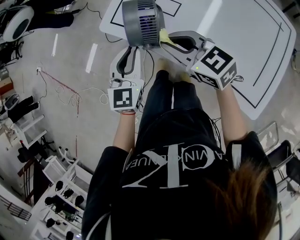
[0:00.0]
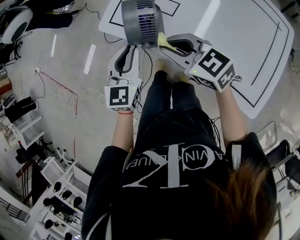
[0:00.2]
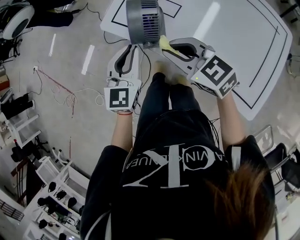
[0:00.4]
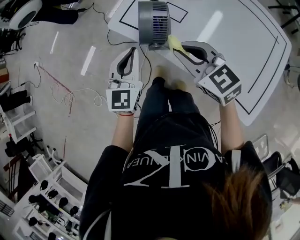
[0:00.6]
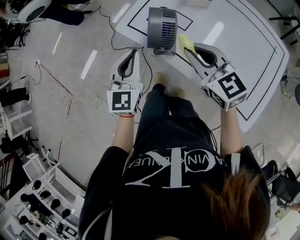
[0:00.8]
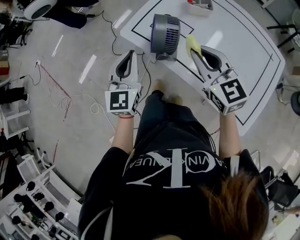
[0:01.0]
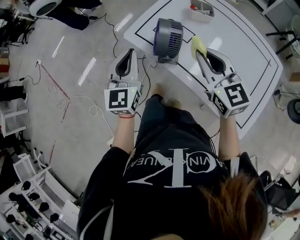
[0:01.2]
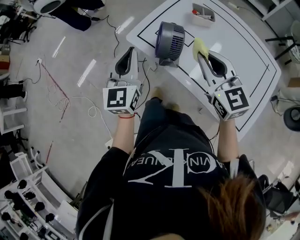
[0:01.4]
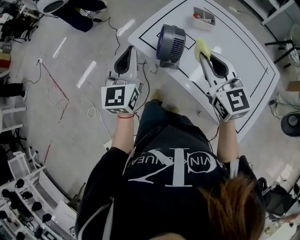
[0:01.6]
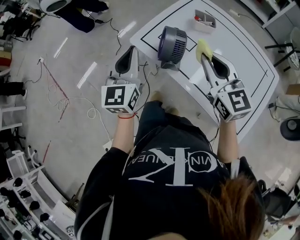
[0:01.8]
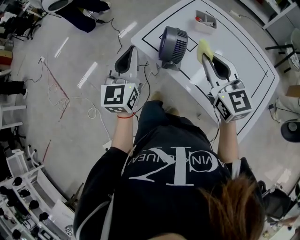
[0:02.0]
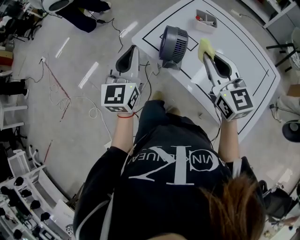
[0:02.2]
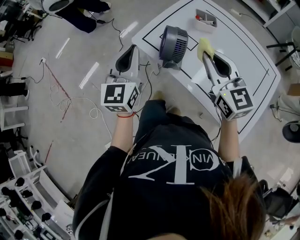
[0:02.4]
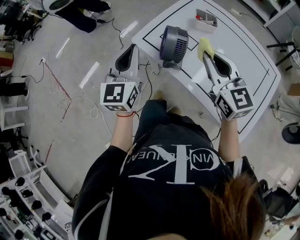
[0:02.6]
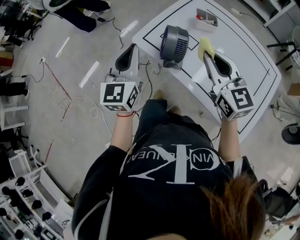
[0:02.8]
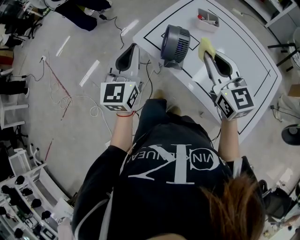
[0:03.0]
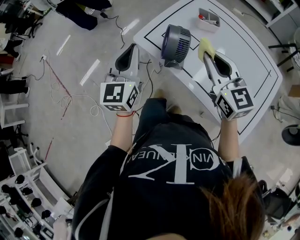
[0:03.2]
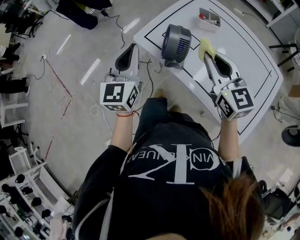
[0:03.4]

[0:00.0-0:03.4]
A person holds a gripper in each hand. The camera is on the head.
0:00.0 to 0:01.6: The left gripper travels upward and to the left by approximately 15 cm, and changes its angle by some 20 degrees. Meanwhile the right gripper travels upward by some 15 cm, and swivels some 30 degrees.
0:01.6 to 0:03.4: The grippers stay close to where they were, moving slightly.

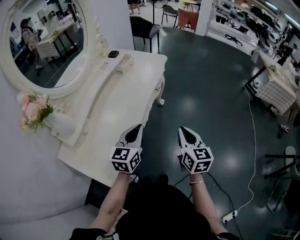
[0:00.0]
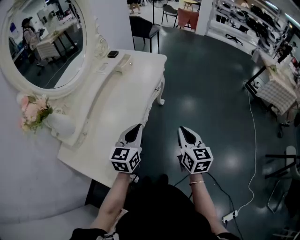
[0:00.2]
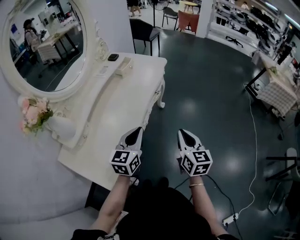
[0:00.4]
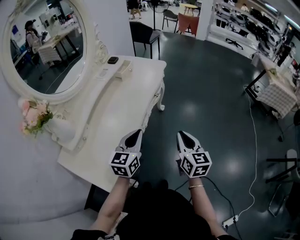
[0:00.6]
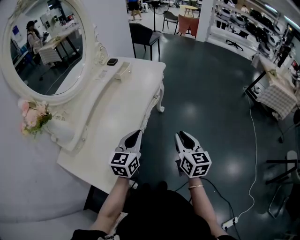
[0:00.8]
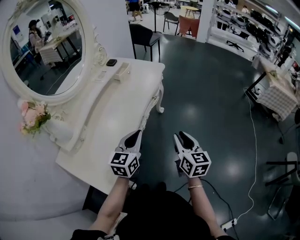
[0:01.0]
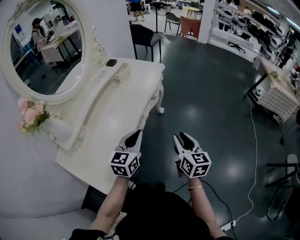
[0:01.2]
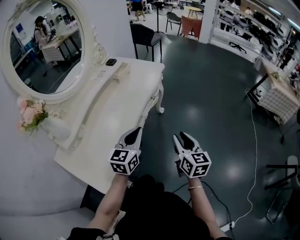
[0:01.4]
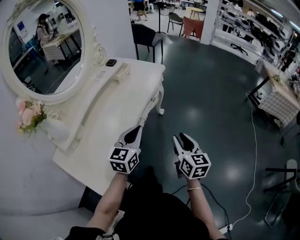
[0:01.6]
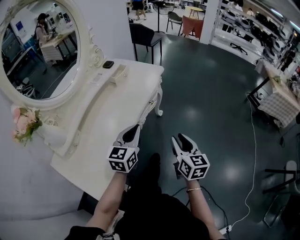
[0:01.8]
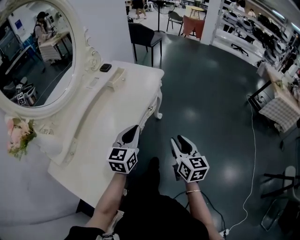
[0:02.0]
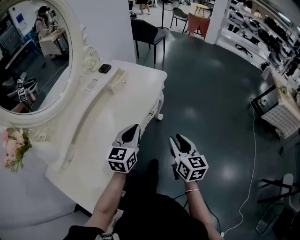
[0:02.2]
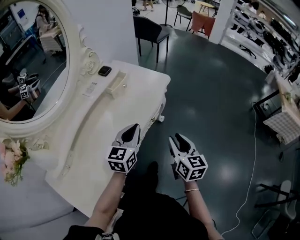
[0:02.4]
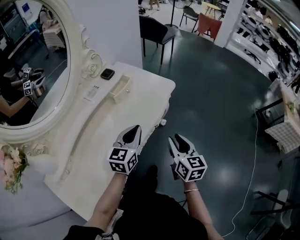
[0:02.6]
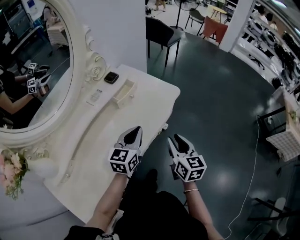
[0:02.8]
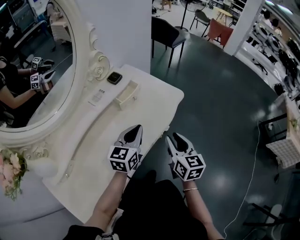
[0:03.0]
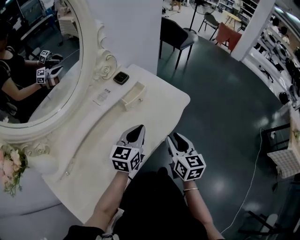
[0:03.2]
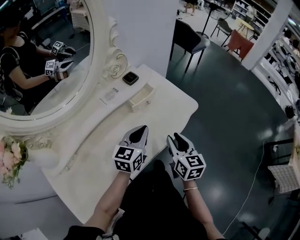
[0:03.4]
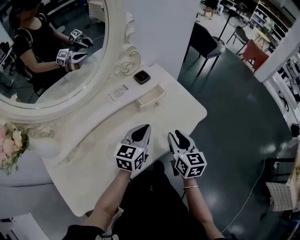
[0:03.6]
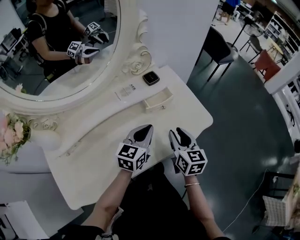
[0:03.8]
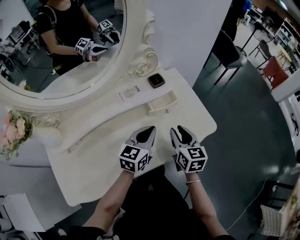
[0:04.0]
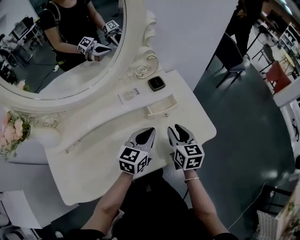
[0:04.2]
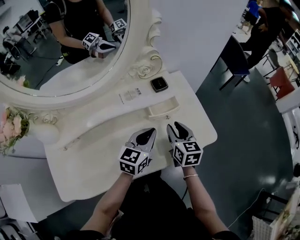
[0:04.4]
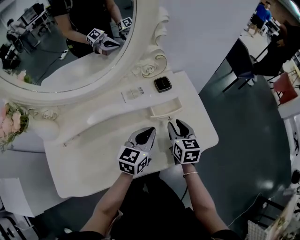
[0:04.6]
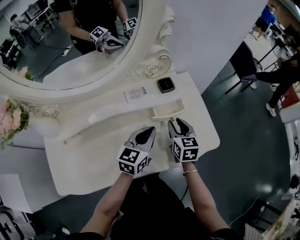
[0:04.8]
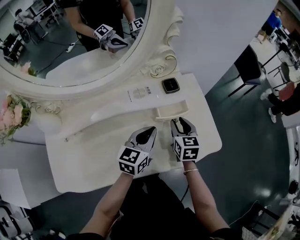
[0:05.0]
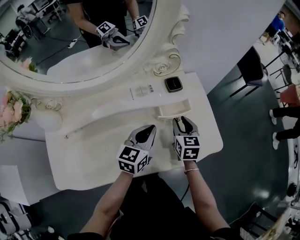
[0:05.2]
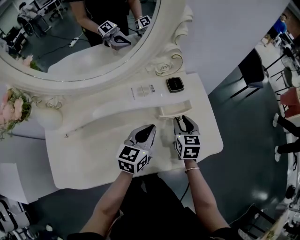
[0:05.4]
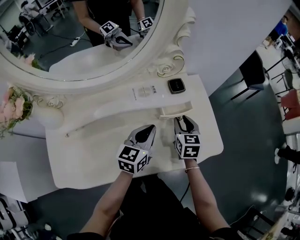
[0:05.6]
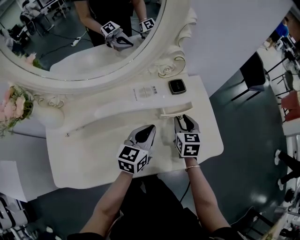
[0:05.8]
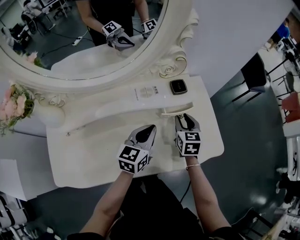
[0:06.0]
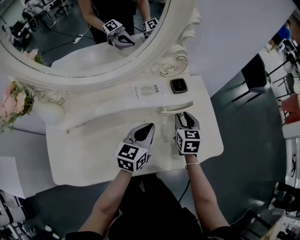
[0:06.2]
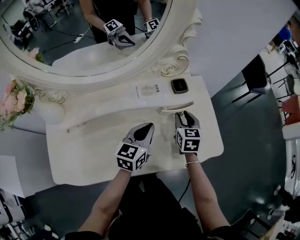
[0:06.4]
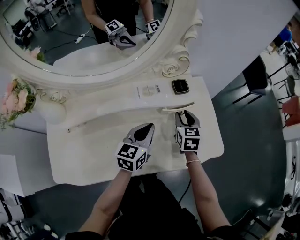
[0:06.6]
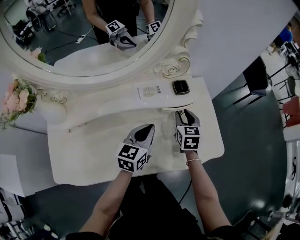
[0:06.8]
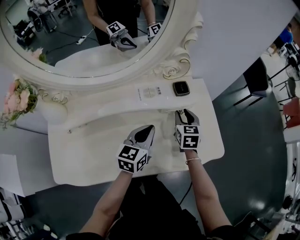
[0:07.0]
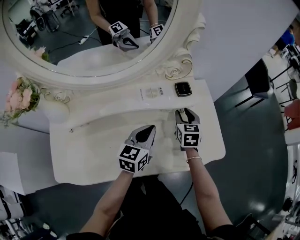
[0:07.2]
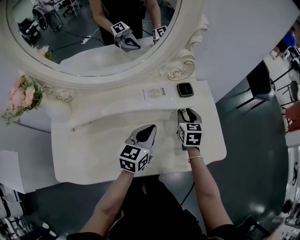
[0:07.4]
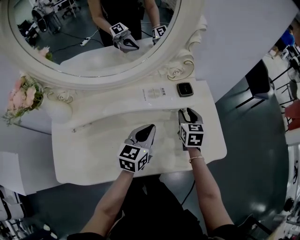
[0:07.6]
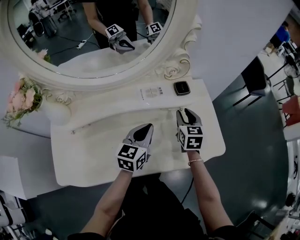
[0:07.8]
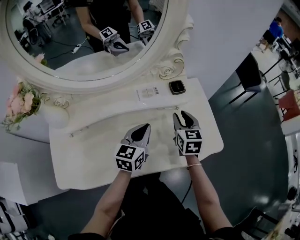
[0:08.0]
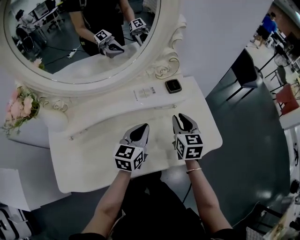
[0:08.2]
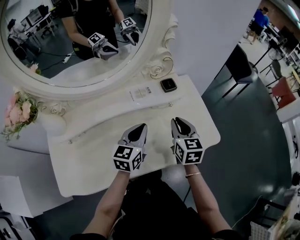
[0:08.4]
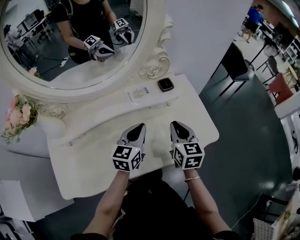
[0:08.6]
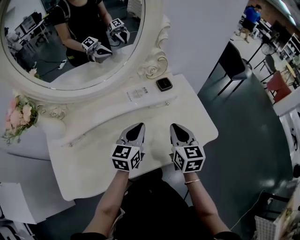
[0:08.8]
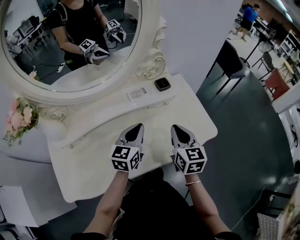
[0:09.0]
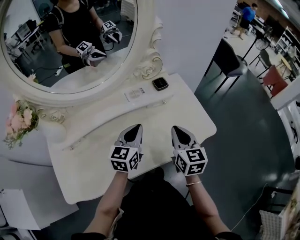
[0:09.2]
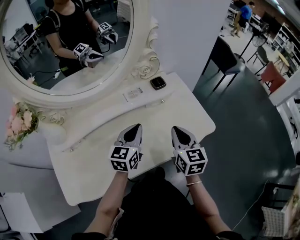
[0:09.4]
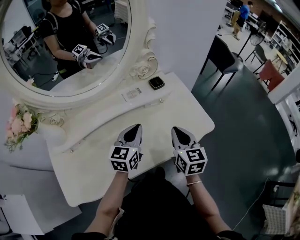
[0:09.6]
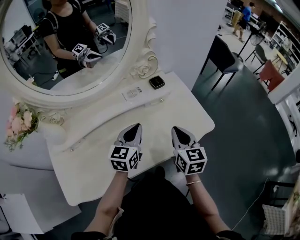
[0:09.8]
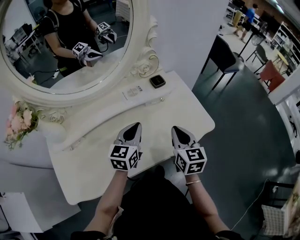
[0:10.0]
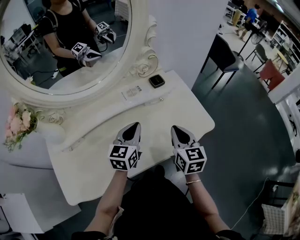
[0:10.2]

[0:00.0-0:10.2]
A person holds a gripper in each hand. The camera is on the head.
0:00.0 to 0:01.4: The right gripper opens its fingers, while the left gripper changes place by some 5 cm.
0:01.4 to 0:03.0: The grippers both shift forward by approximately 30 cm.
0:03.0 to 0:04.4: The right gripper shifts by about 25 cm, and turns by approximately 30 degrees. The left gripper changes place by roughly 10 cm, and changes its angle by some 20 degrees.
0:04.4 to 0:05.8: The right gripper is displaced forward by some 5 cm, while the left gripper shifts by roughly 5 cm.
0:05.8 to 0:07.2: The grippers make only small movements.
0:07.2 to 0:08.8: The right gripper travels backward and upward by some 15 cm, and closes up.
0:08.8 to 0:10.2: The grippers make only small movements.

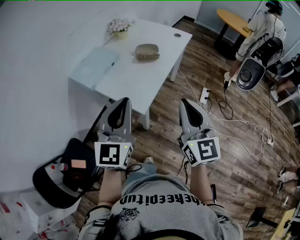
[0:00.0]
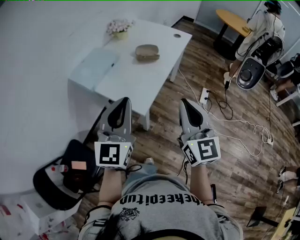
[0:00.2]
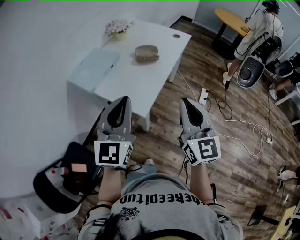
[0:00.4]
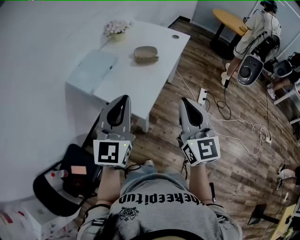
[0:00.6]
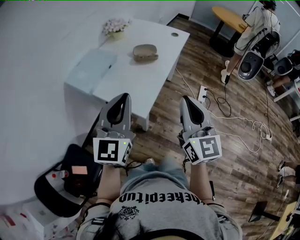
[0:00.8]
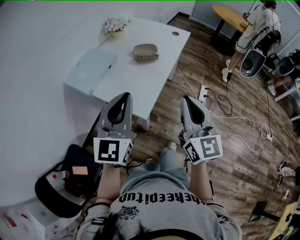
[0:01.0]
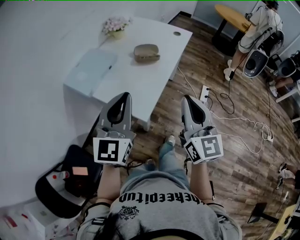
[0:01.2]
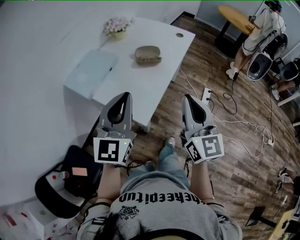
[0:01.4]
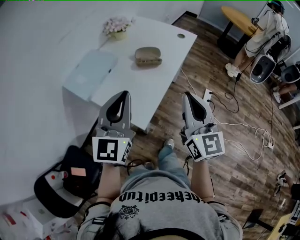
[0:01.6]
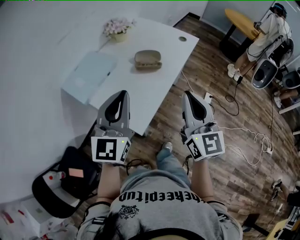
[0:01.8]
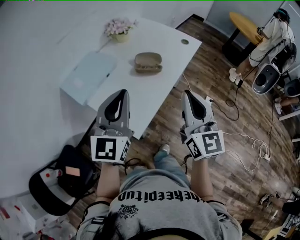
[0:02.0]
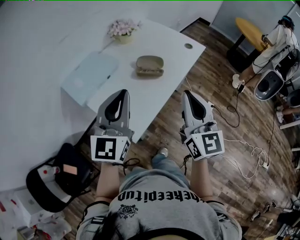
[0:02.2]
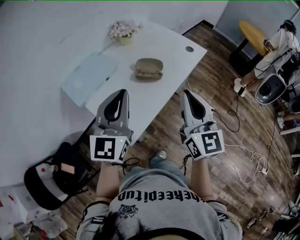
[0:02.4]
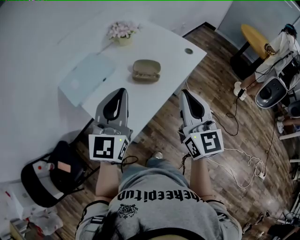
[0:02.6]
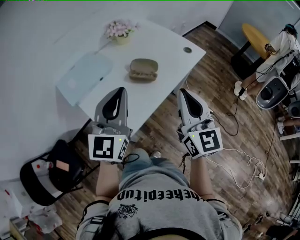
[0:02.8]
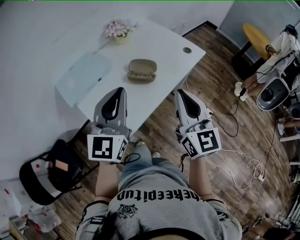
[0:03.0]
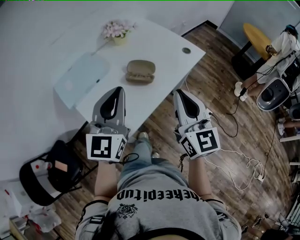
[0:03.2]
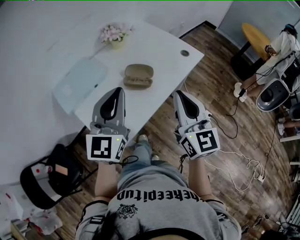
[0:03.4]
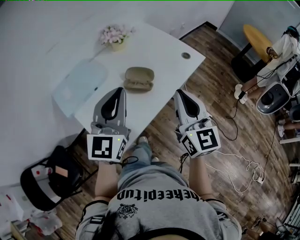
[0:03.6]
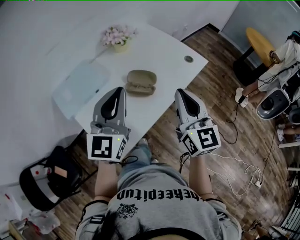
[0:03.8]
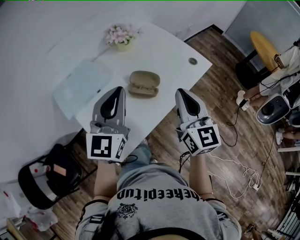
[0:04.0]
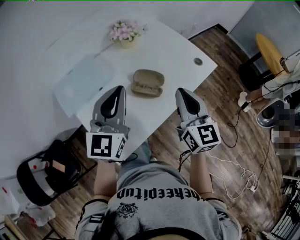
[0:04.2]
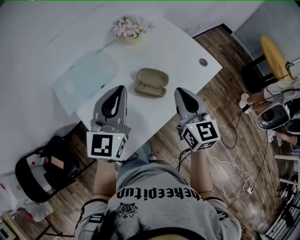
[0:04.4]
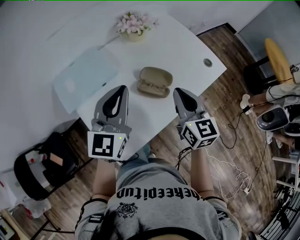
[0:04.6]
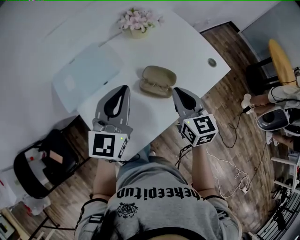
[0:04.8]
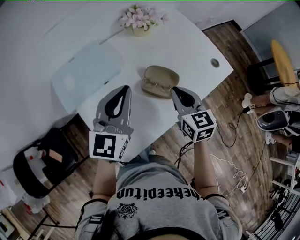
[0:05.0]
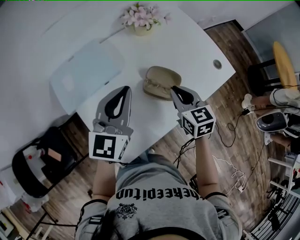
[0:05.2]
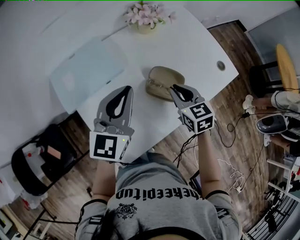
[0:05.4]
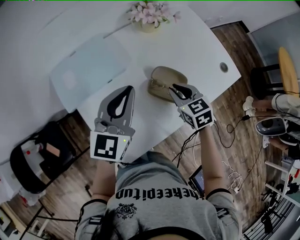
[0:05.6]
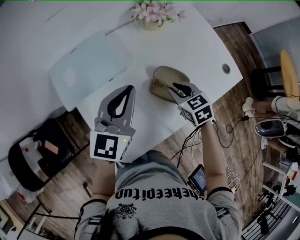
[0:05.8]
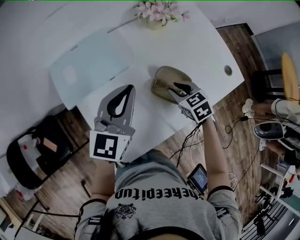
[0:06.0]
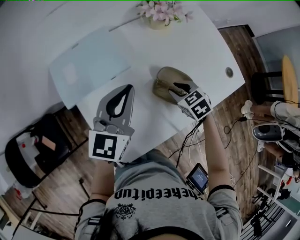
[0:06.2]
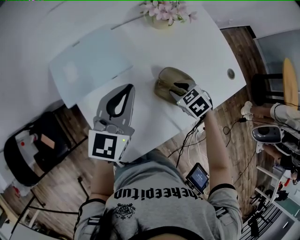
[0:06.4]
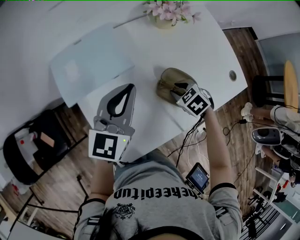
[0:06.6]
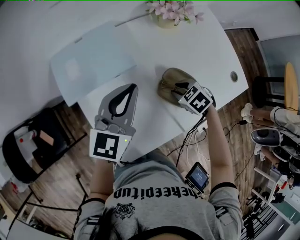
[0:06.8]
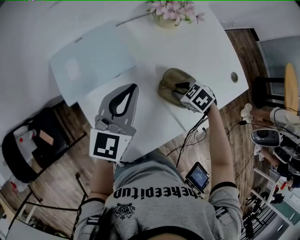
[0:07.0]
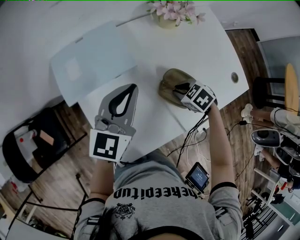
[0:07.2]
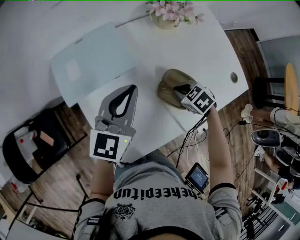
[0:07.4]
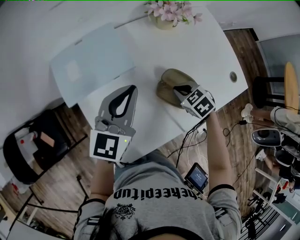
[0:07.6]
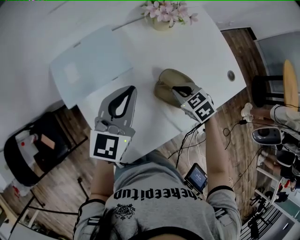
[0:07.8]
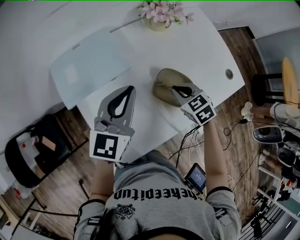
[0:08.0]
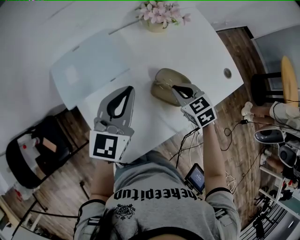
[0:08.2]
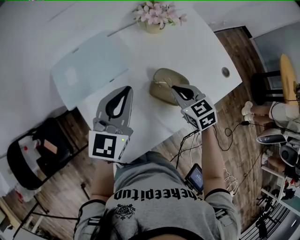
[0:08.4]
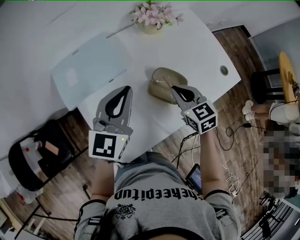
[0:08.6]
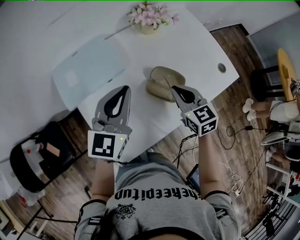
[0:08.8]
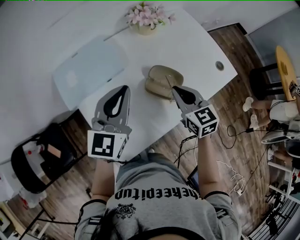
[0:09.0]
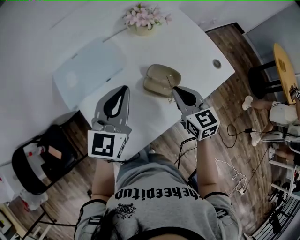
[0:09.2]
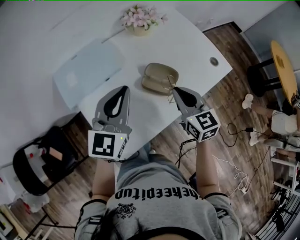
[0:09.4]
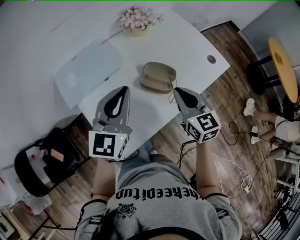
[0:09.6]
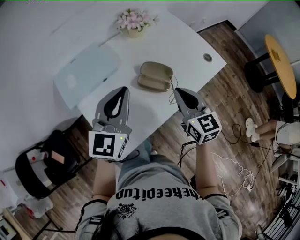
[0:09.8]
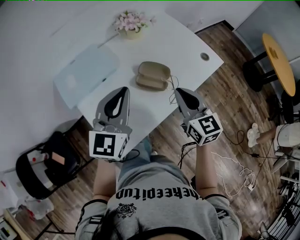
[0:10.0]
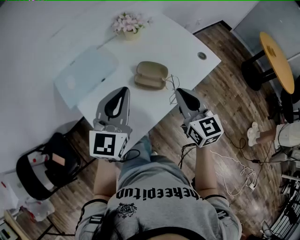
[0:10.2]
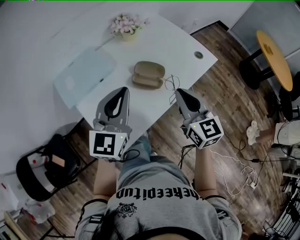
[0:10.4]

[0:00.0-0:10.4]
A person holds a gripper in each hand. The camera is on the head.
0:00.0 to 0:01.4: The two grippers go some 10 cm forward.
0:01.4 to 0:03.0: Both grippers travel together forward and to the right, some 20 cm.
0:03.0 to 0:04.4: The grippers both shift forward by about 15 cm.
0:04.4 to 0:06.0: The left gripper heads forward and downward, covering roughly 10 cm; the right gripper moves downward and forward, roughly 25 cm, tilts its fingers approximately 40 degrees downward, and opens up.
0:06.0 to 0:07.4: The right gripper rotates roughly 20 degrees, and closes.
0:07.4 to 0:09.0: The left gripper travels backward by roughly 5 cm; the right gripper is displaced upward by some 15 cm, and tips its fingers upward by about 40 degrees.
0:09.0 to 0:10.4: The left gripper shifts about 10 cm backward. The right gripper heads backward, upward and to the right, covering about 15 cm, and changes its angle by about 20 degrees.
